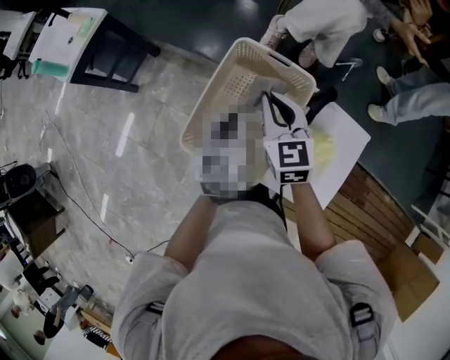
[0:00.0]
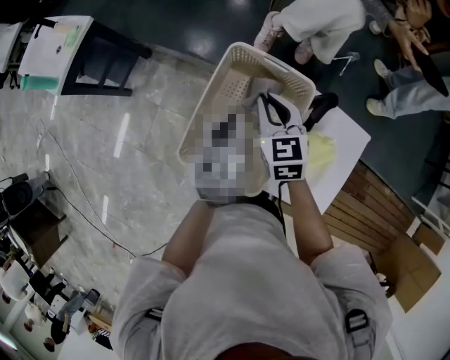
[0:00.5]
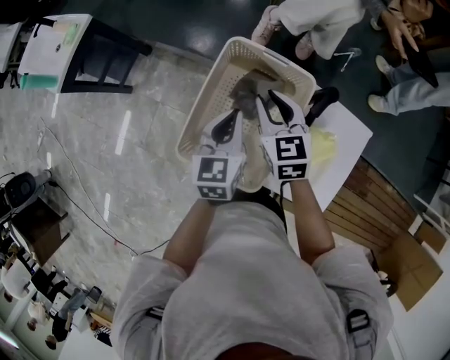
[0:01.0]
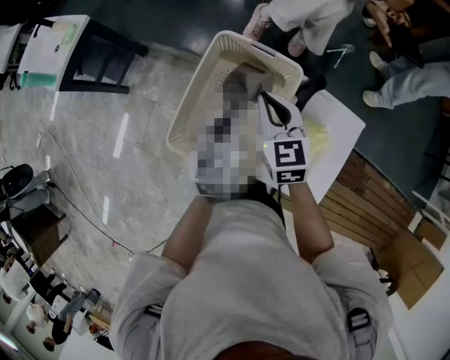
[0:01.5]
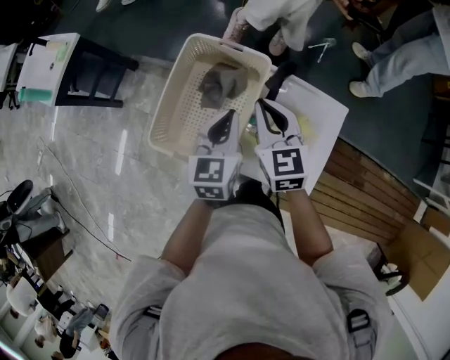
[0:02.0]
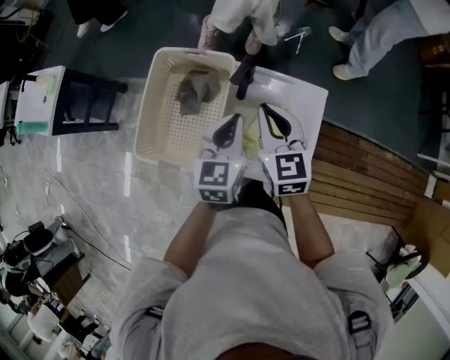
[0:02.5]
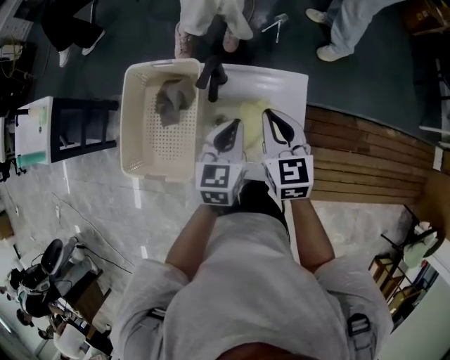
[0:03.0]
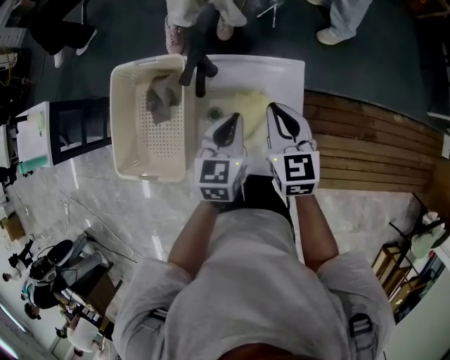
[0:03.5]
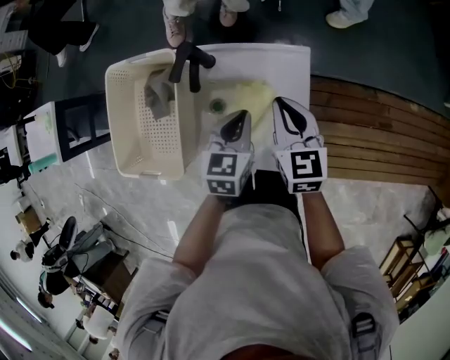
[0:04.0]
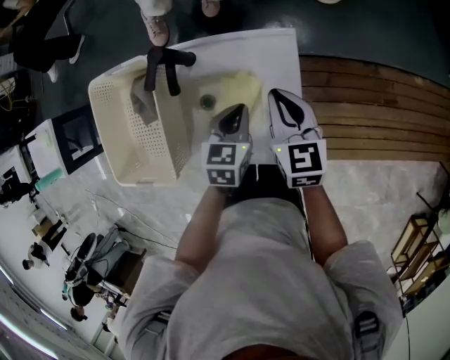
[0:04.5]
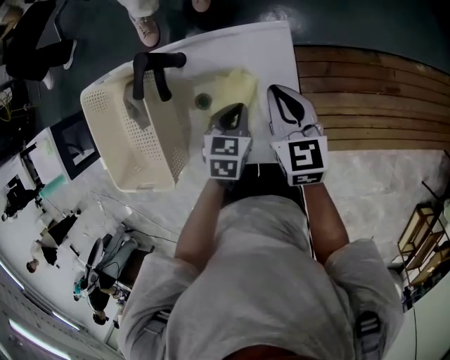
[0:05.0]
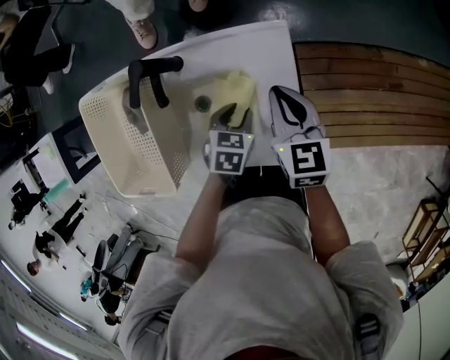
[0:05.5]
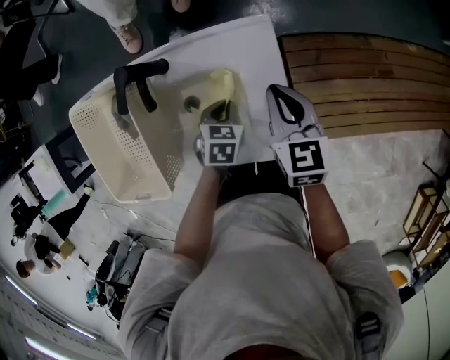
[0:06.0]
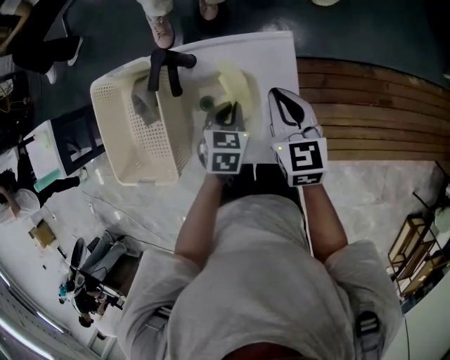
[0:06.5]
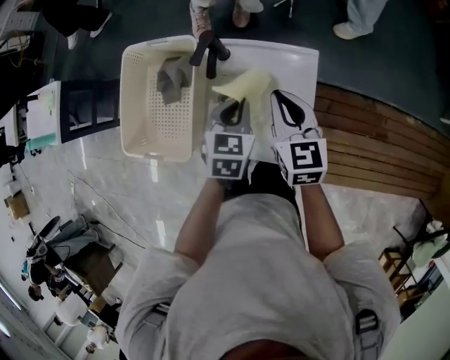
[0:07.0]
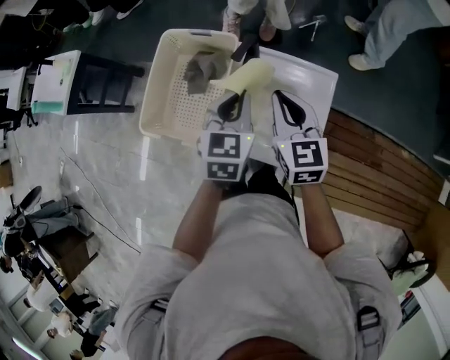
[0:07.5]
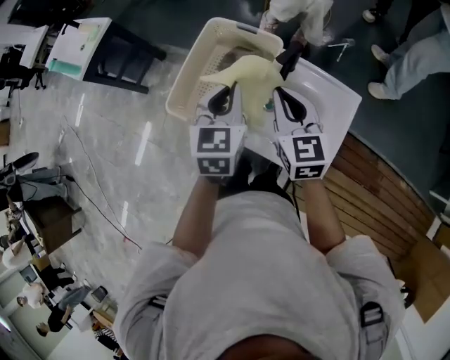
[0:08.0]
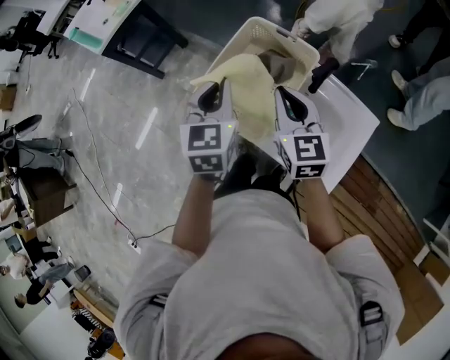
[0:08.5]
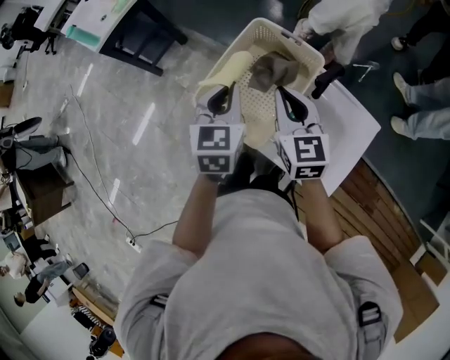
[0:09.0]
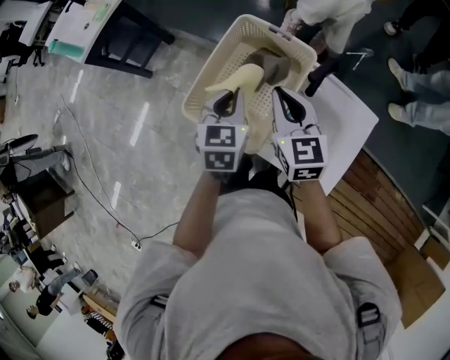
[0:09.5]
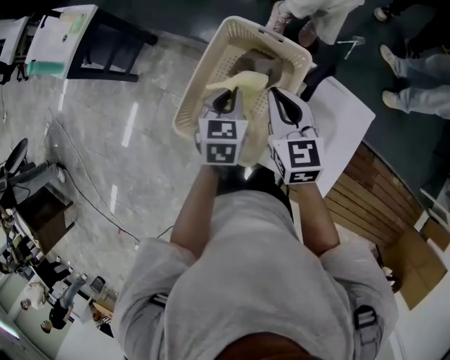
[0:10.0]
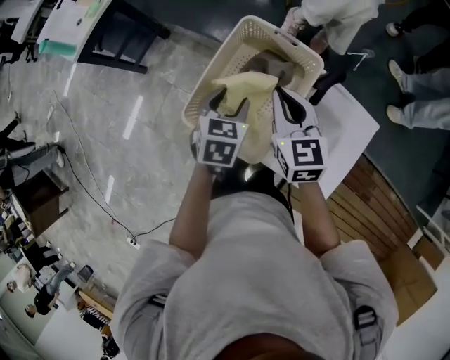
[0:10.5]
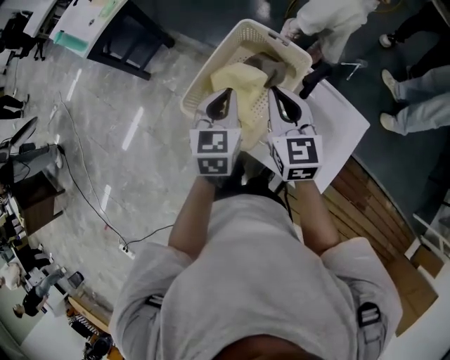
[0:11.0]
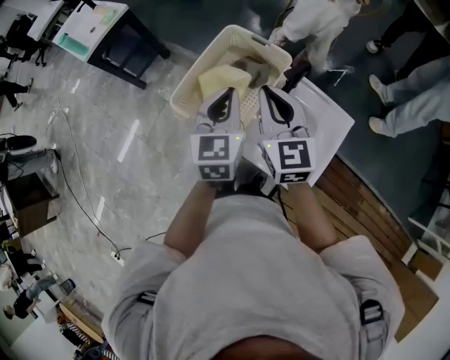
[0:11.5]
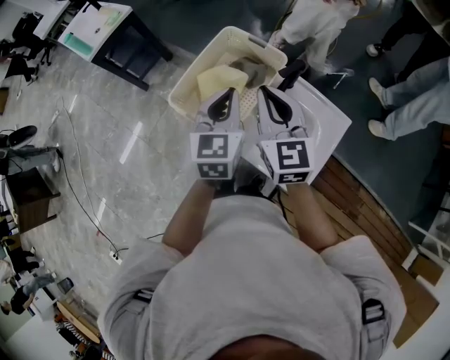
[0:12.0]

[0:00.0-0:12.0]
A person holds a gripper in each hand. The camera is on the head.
0:00.0 to 0:02.0: The right gripper travels to the right and backward by some 10 cm, and opens, then closes again, while the left gripper goes roughly 10 cm to the right.
0:02.0 to 0:04.0: The right gripper moves to the right, roughly 25 cm, and turns by some 20 degrees, while the left gripper is displaced to the right and downward by approximately 25 cm, and turns by approximately 30 degrees.
0:04.0 to 0:06.0: The right gripper is displaced to the right and downward by roughly 10 cm. Meanwhile the left gripper shifts roughly 15 cm downward, swivels roughly 30 degrees, and opens, then closes again.
0:06.0 to 0:08.0: The right gripper moves about 30 cm, and rotates approximately 40 degrees; the left gripper travels upward by roughly 30 cm, and points its fingers approximately 40 degrees further upward.
0:08.0 to 0:10.0: The left gripper moves downward, forward and to the left, roughly 15 cm; the right gripper moves forward and to the left, roughly 10 cm.
0:10.0 to 0:12.0: The grippers both shift upward and backward by some 15 cm. The left gripper swivels approximately 20 degrees, and opens and closes again.

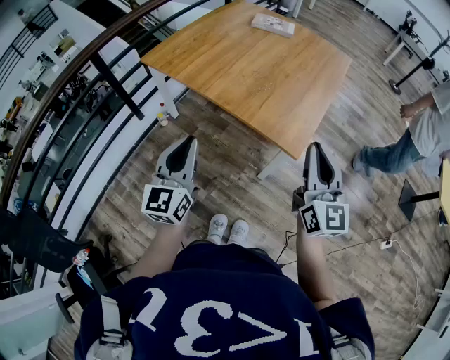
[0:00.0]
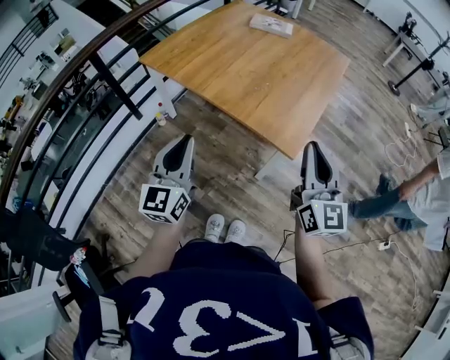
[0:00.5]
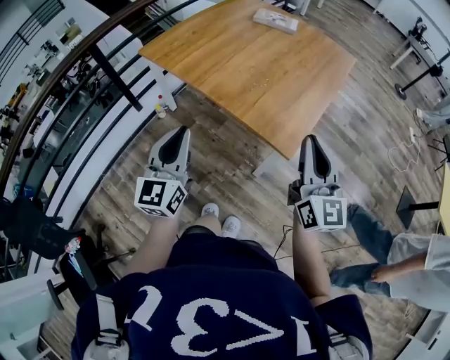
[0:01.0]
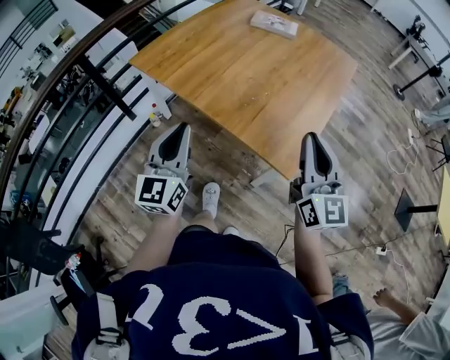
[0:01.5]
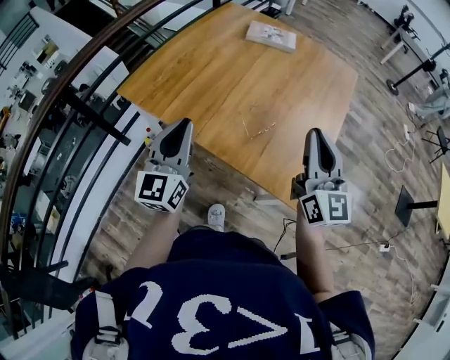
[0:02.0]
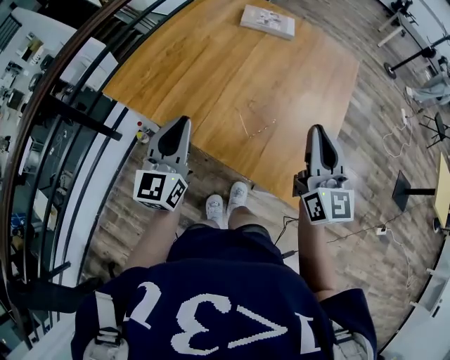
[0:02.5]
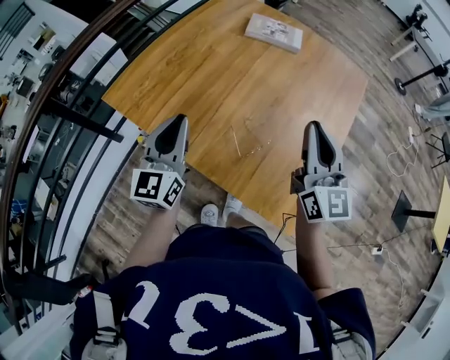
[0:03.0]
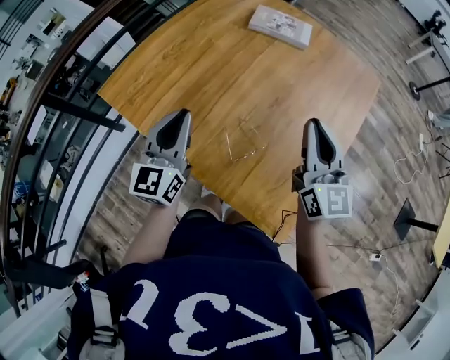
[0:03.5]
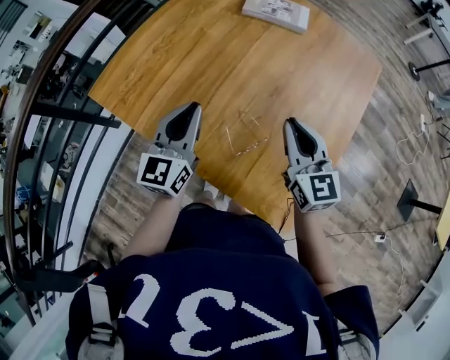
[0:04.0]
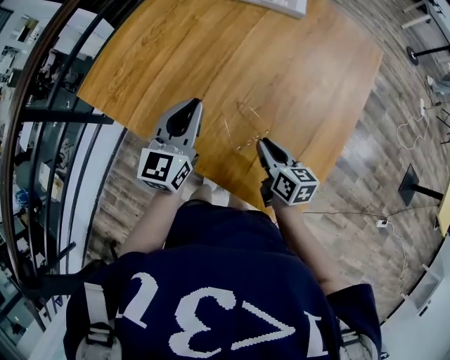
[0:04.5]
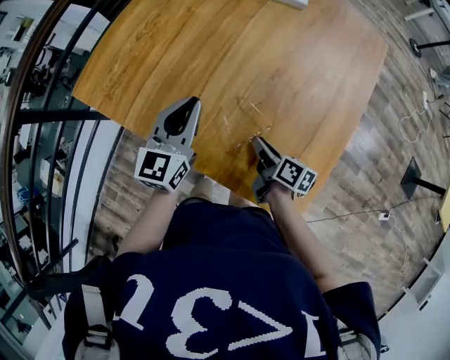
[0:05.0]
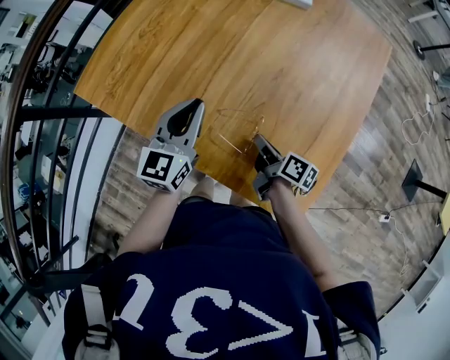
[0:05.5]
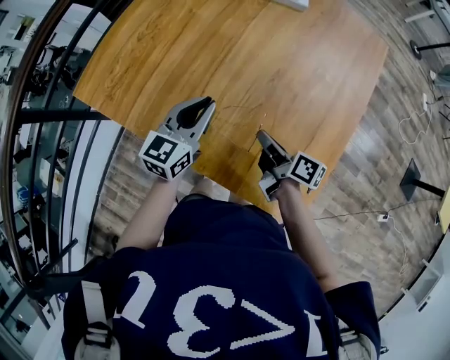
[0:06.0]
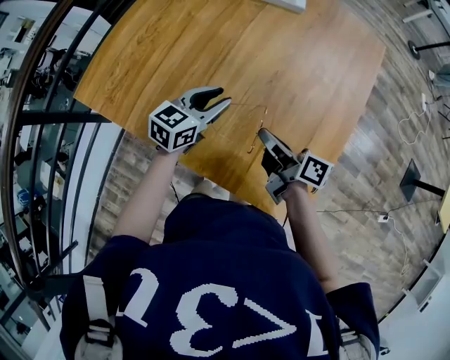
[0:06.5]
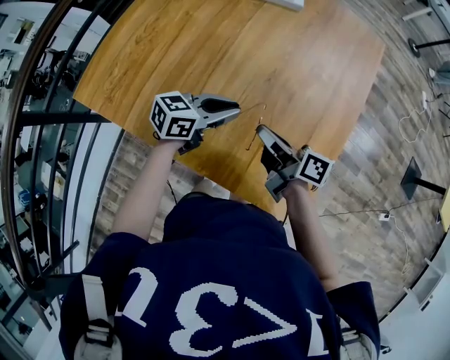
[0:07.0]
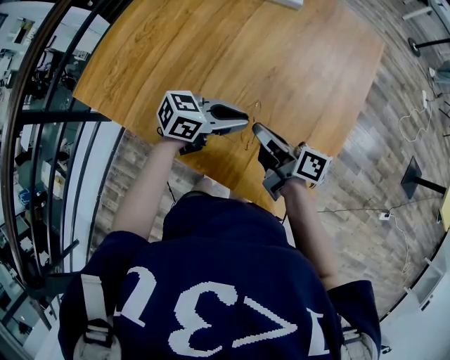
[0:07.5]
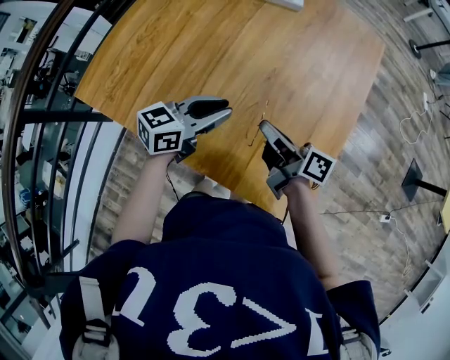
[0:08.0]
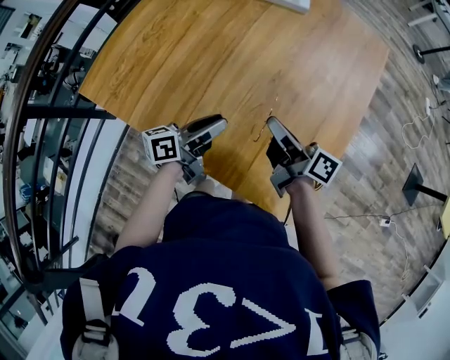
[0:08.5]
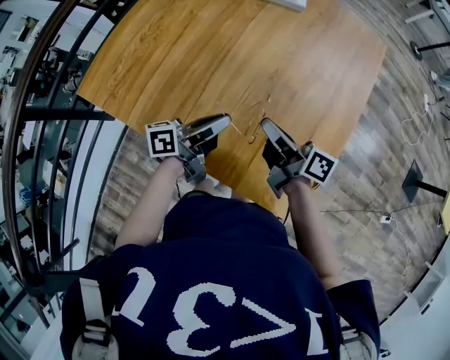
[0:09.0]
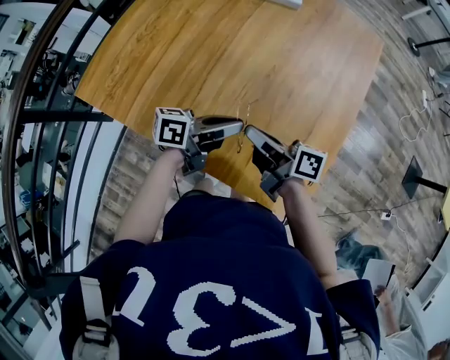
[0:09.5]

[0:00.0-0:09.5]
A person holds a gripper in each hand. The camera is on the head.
0:00.0 to 0:02.0: The two grippers go some 25 cm forward.
0:02.0 to 0:04.0: The left gripper shifts some 20 cm forward, to the right and downward. Meanwhile the right gripper goes roughly 20 cm forward and downward, and swivels about 20 degrees.
0:04.0 to 0:05.5: The left gripper travels downward by about 5 cm, while the right gripper moves downward, some 20 cm, and rotates around the line of its fingers by roughly 70 degrees, clockwise from behind.
0:05.5 to 0:07.5: The left gripper ends up approximately 15 cm from where it was, and changes its angle by approximately 60 degrees, while the right gripper is displaced upward by approximately 10 cm, and swivels some 20 degrees.
0:07.5 to 0:09.5: The left gripper rotates about 30 degrees.

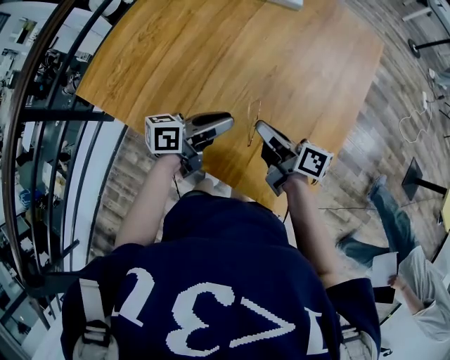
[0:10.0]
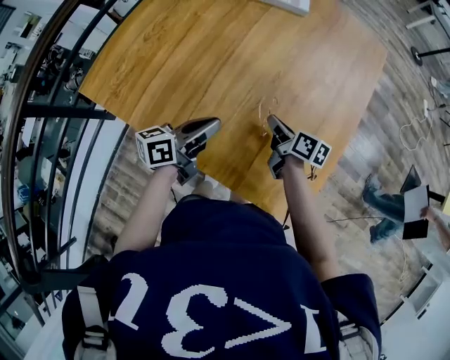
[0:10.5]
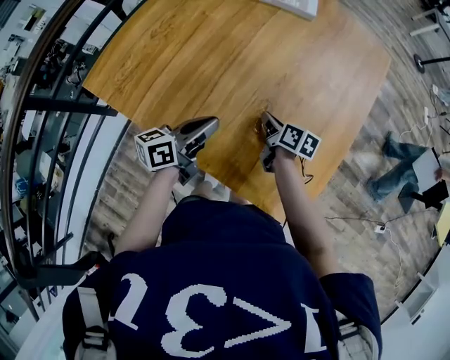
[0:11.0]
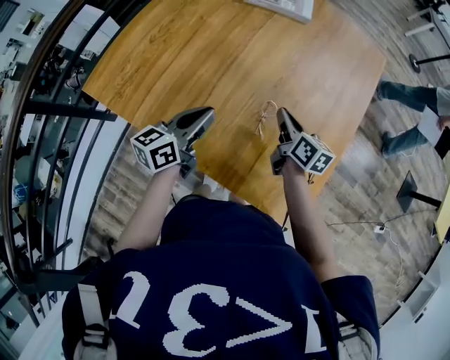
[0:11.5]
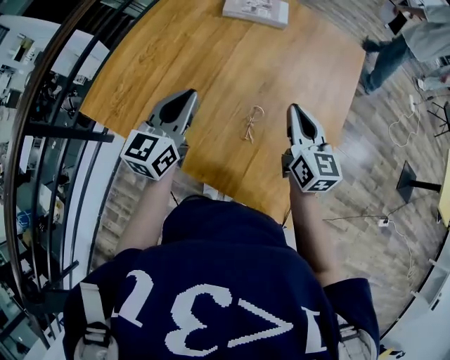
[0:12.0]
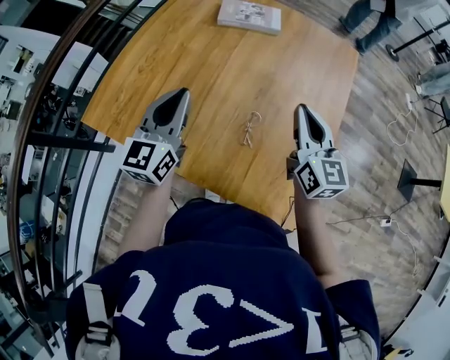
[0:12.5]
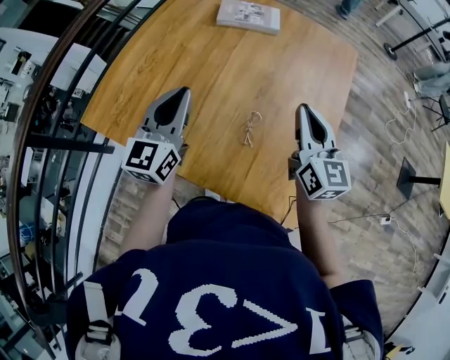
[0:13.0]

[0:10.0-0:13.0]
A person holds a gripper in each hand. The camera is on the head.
0:10.0 to 0:11.5: The left gripper moves to the left, some 5 cm, and rotates roughly 30 degrees; the right gripper moves forward, roughly 5 cm, moves about 10 cm downward and comes back, and rotates some 30 degrees.
0:11.5 to 0:13.0: Both grippers move upward, some 15 cm. The left gripper rotates some 40 degrees, while the right gripper changes its angle by roughly 40 degrees.

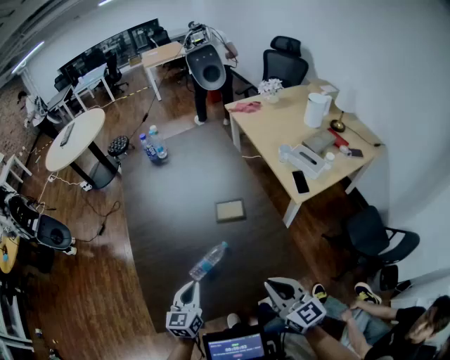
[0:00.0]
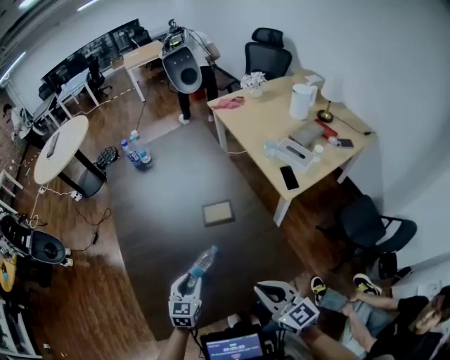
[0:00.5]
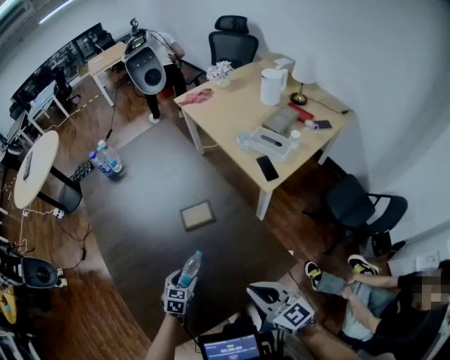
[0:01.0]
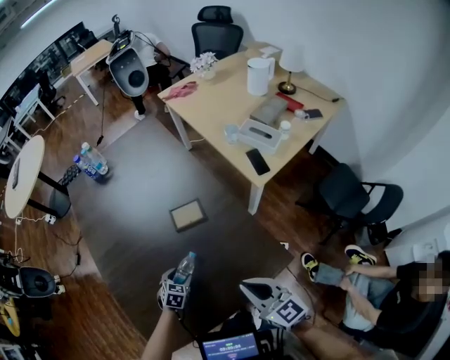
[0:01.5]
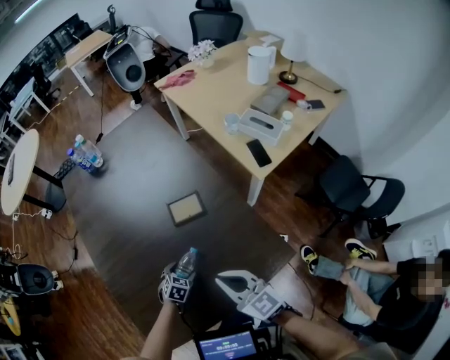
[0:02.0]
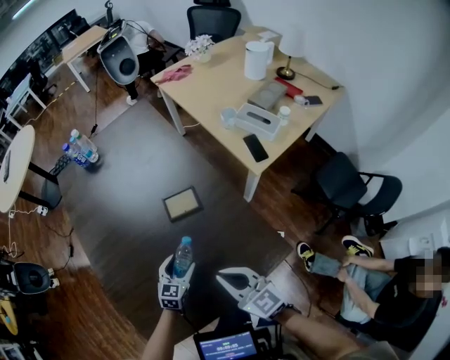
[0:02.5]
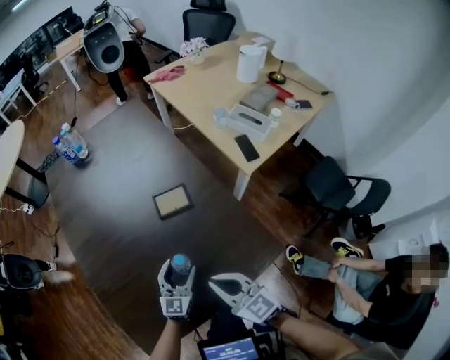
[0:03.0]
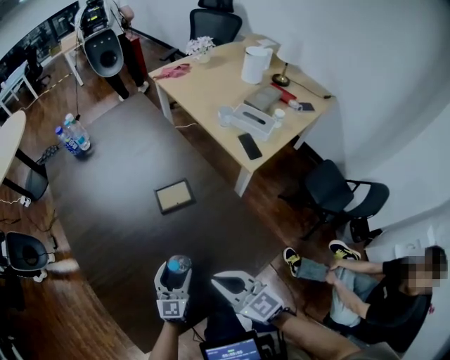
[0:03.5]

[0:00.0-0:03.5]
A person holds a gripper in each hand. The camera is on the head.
0:00.0 to 0:02.0: The left gripper moves downward and forward, some 25 cm, points its fingers approximately 40 degrees further downward, and opens up. Meanwhile the right gripper goes some 15 cm forward, downward and to the left.
0:02.0 to 0:03.5: The right gripper shifts by approximately 5 cm, while the left gripper is displaced upward by roughly 10 cm, and points its fingers approximately 50 degrees further upward.
